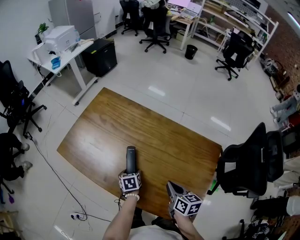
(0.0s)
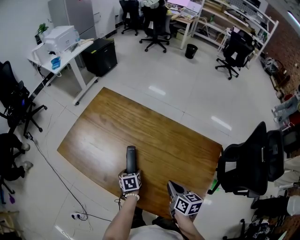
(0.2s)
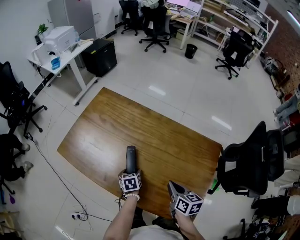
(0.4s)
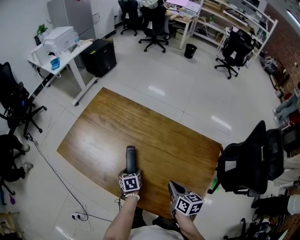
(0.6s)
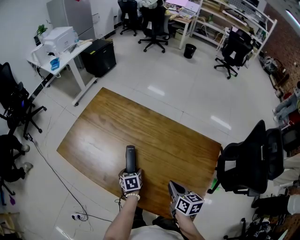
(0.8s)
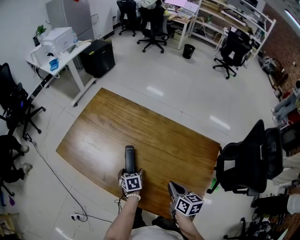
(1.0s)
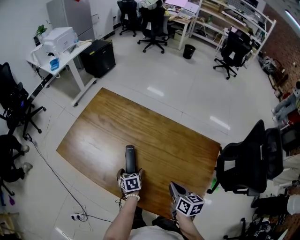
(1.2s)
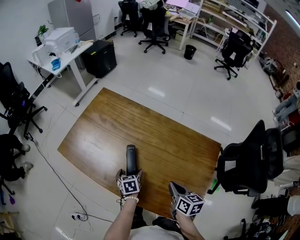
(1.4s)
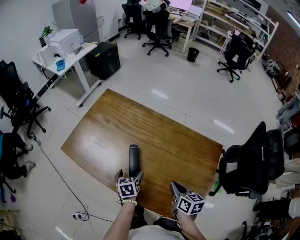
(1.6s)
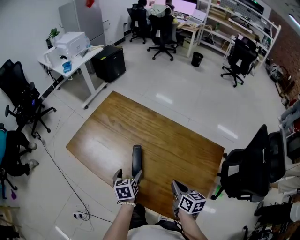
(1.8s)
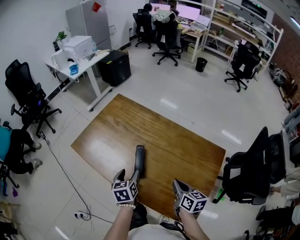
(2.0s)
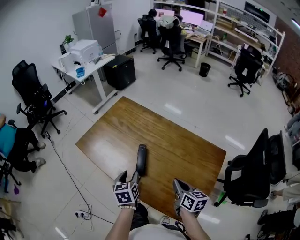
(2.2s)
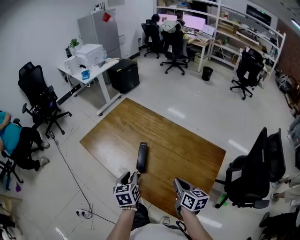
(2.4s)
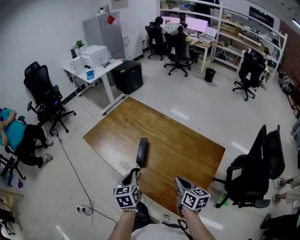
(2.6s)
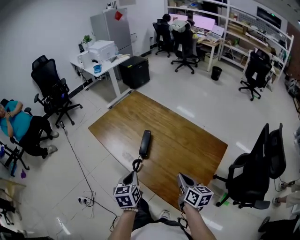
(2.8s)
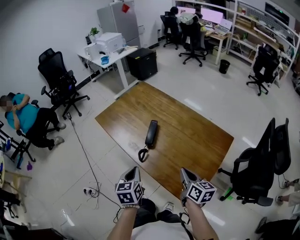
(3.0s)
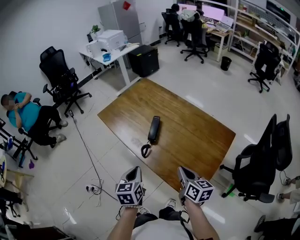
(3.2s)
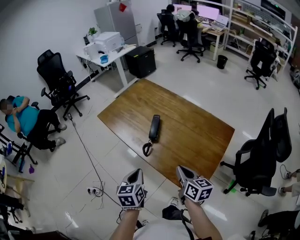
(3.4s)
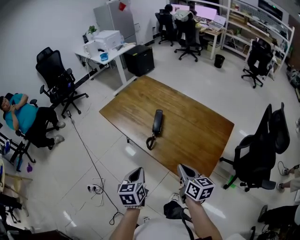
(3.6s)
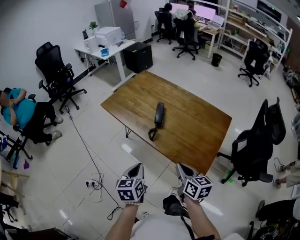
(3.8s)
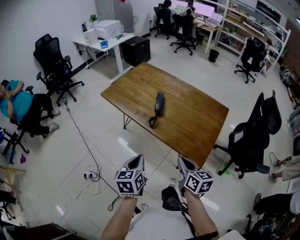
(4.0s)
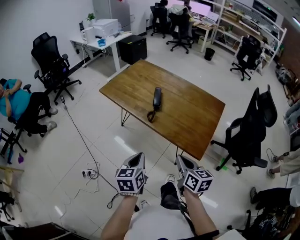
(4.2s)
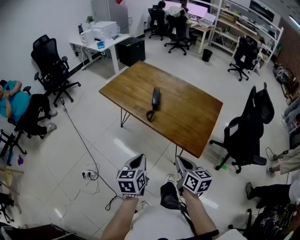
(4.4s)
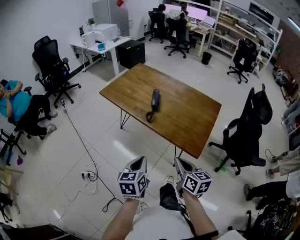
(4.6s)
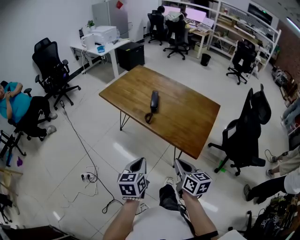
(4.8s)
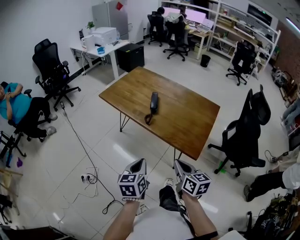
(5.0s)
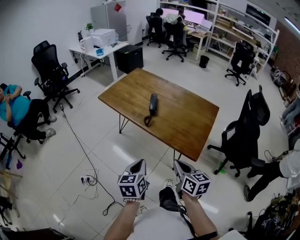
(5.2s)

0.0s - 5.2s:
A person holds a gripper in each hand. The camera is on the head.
0.0s - 1.8s: The left gripper moves upward, some 10 cm.
1.8s - 3.4s: The left gripper moves backward and upward, some 25 cm, and closes its fingers. The right gripper heads backward, upward and to the left, covering about 15 cm.
3.4s - 5.2s: Both grippers travel together backward, about 20 cm.

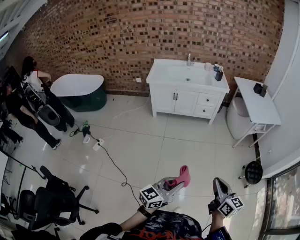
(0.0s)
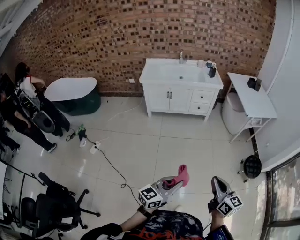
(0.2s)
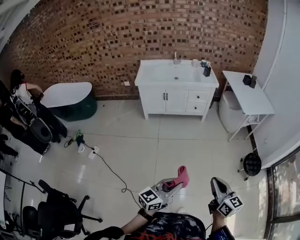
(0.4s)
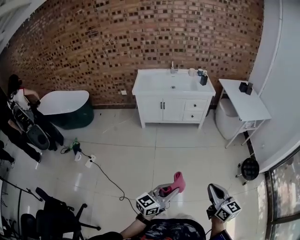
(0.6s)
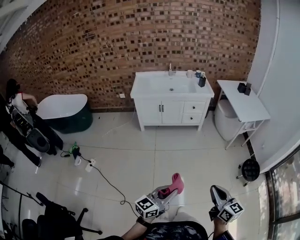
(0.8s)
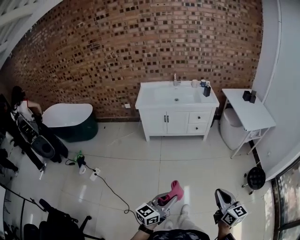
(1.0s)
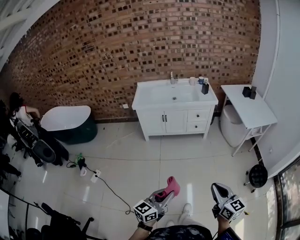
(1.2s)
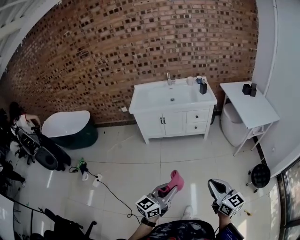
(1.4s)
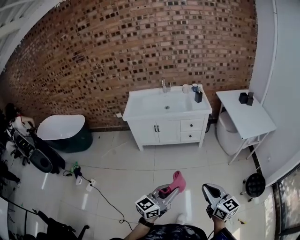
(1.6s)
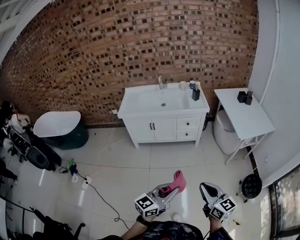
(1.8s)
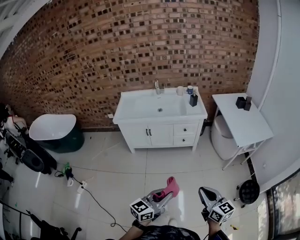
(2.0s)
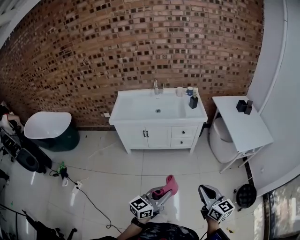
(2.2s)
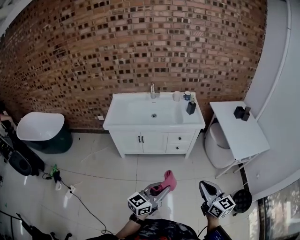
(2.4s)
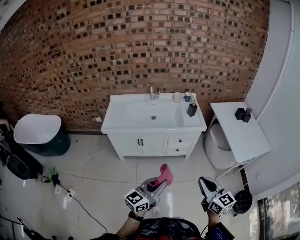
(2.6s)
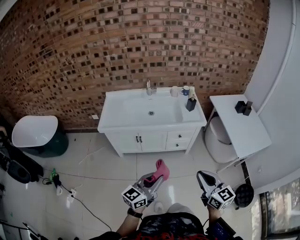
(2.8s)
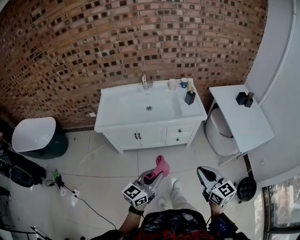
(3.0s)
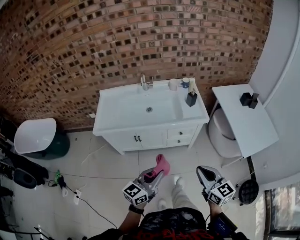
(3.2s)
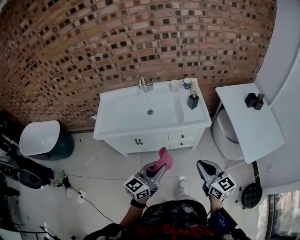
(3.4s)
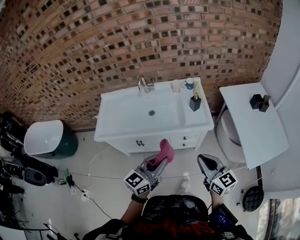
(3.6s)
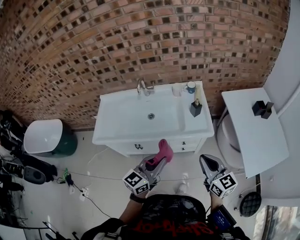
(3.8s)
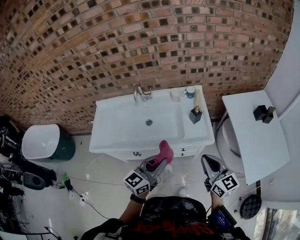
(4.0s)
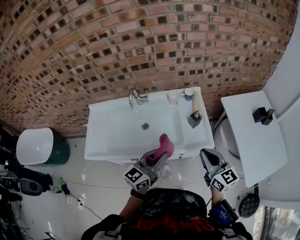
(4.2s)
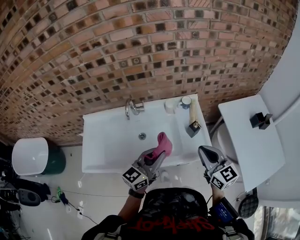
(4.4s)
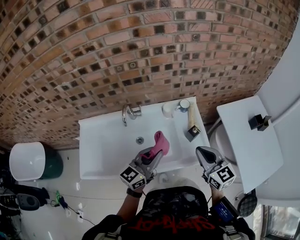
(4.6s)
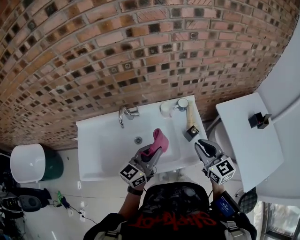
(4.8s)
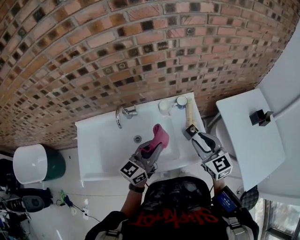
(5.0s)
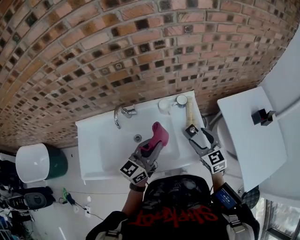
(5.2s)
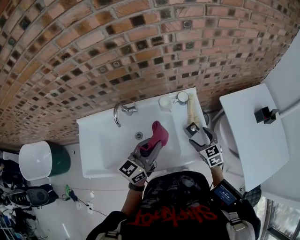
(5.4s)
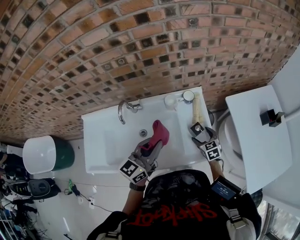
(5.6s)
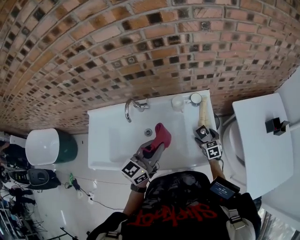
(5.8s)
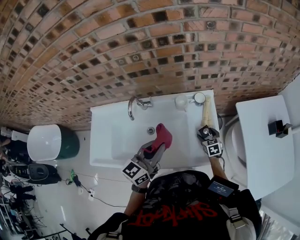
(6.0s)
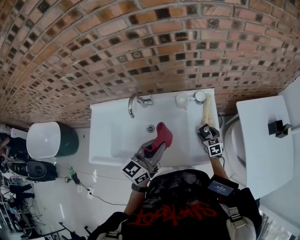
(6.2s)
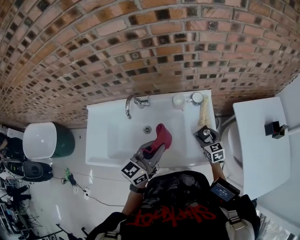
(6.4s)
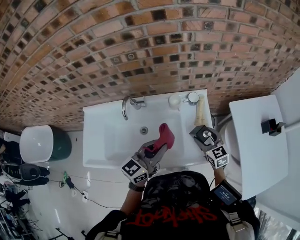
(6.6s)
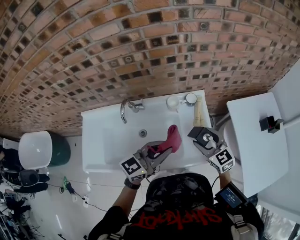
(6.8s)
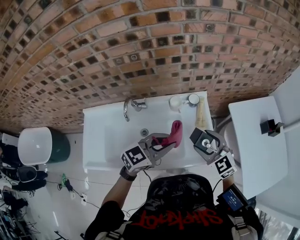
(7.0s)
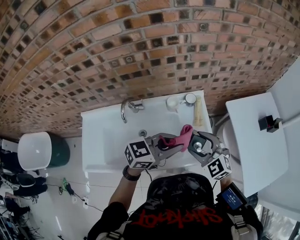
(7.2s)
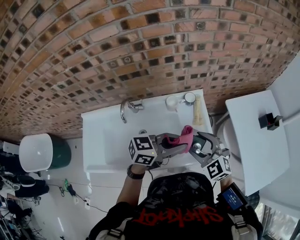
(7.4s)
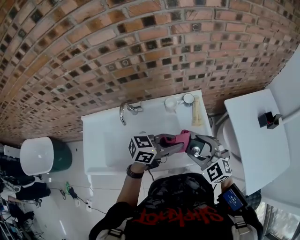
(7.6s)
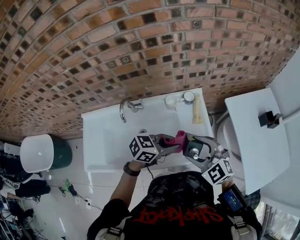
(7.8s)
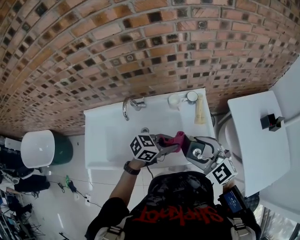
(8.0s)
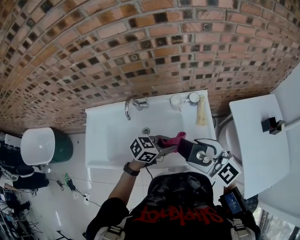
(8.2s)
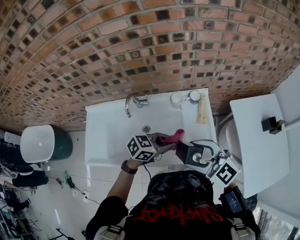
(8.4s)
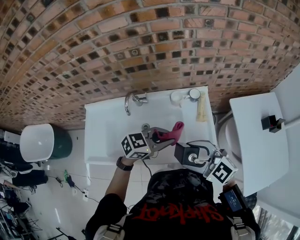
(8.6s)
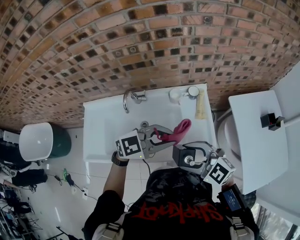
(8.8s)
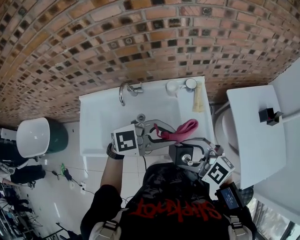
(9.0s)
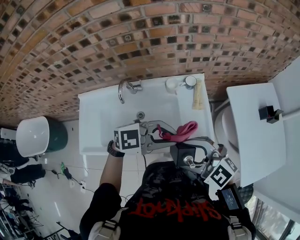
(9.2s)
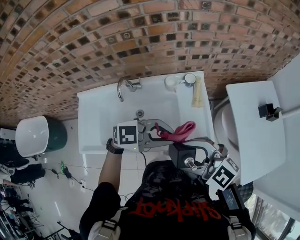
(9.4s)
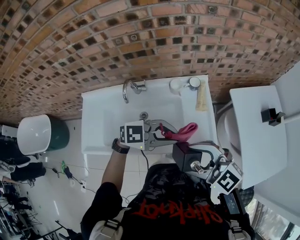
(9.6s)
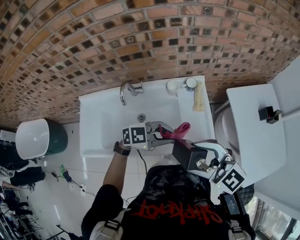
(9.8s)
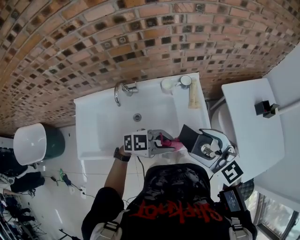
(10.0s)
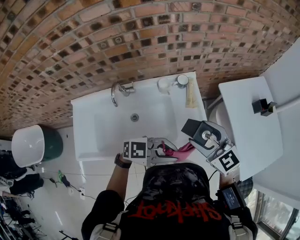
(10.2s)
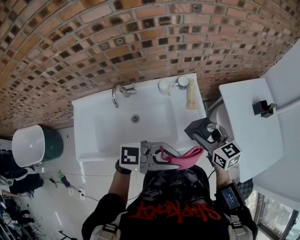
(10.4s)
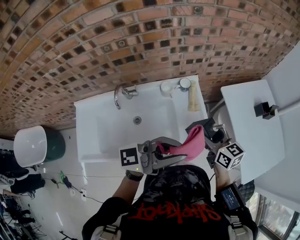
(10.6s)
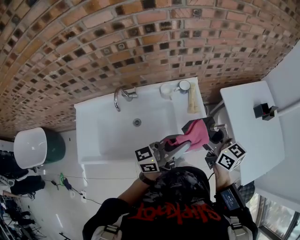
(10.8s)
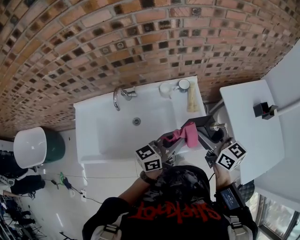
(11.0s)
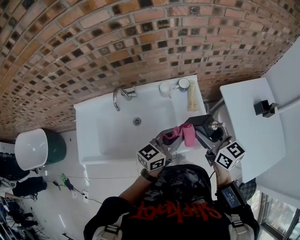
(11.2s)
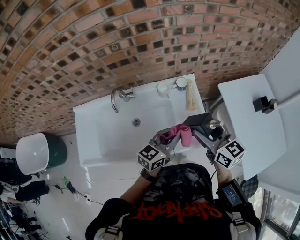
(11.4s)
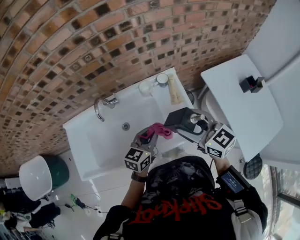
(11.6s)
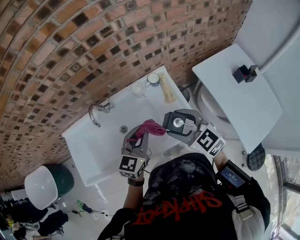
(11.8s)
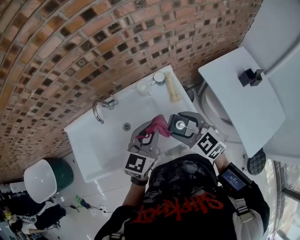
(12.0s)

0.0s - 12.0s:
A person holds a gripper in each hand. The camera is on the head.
0.0s - 1.6s: The grippers both shift forward by approximately 20 cm.
1.6s - 3.0s: The pair of grippers is taken forward, roughly 40 cm.
3.0s - 4.4s: Both grippers are carried forward, approximately 50 cm.
4.4s - 6.0s: The right gripper goes roughly 40 cm downward and forward, angles its fingers downward, by approximately 40 degrees, and opens, while the left gripper heads forward, covering roughly 10 cm.
6.0s - 7.6s: The right gripper shifts approximately 30 cm upward and backward, and swivels approximately 40 degrees. The left gripper shifts roughly 10 cm to the right, and turns by roughly 50 degrees.
7.6s - 9.0s: The right gripper ends up roughly 10 cm from where it was, and rotates about 30 degrees. The left gripper moves upward, about 5 cm, and swivels approximately 40 degrees.
9.0s - 10.4s: The left gripper travels downward and back again, roughly 10 cm each way, and changes its angle by some 20 degrees; the right gripper changes place by approximately 15 cm, and turns by some 50 degrees.
10.4s - 12.0s: The left gripper swings up and down, some 20 cm each way, with 2 reversals, and rotates approximately 60 degrees, while the right gripper turns by some 20 degrees.

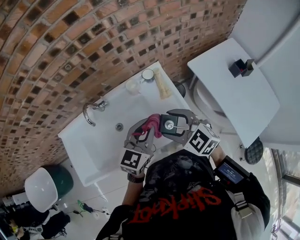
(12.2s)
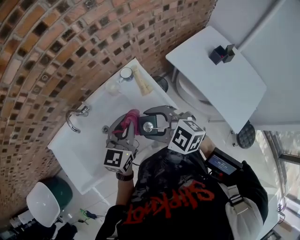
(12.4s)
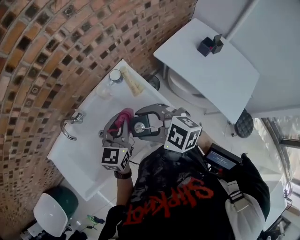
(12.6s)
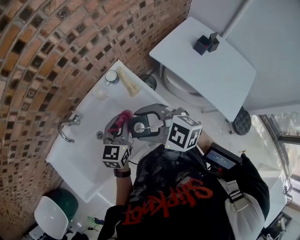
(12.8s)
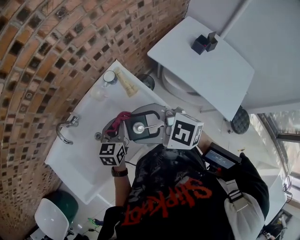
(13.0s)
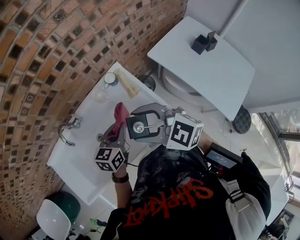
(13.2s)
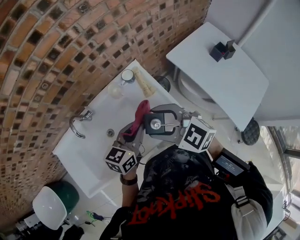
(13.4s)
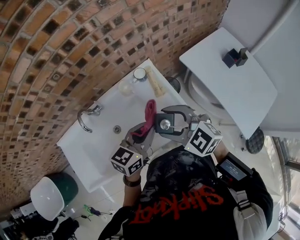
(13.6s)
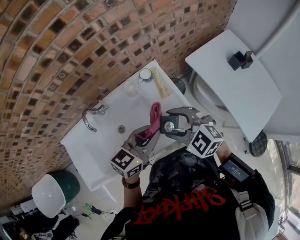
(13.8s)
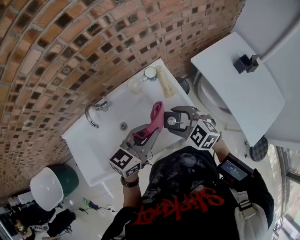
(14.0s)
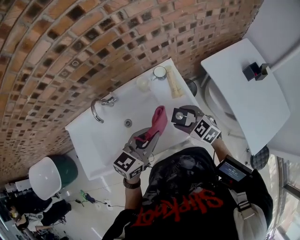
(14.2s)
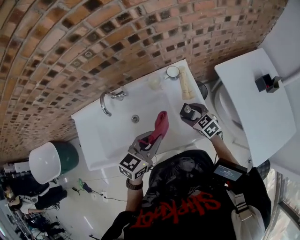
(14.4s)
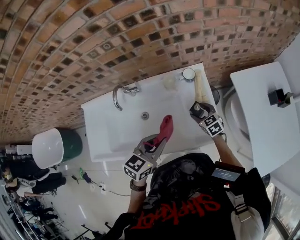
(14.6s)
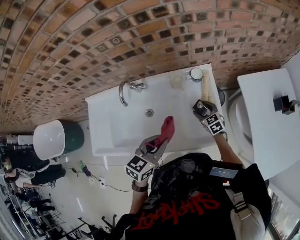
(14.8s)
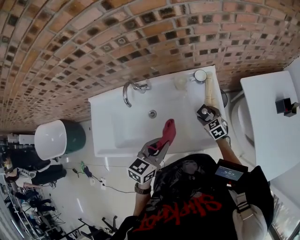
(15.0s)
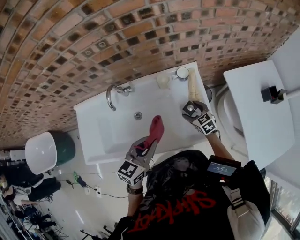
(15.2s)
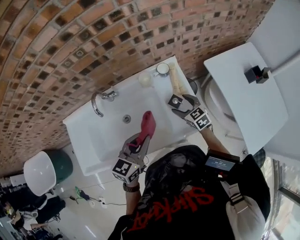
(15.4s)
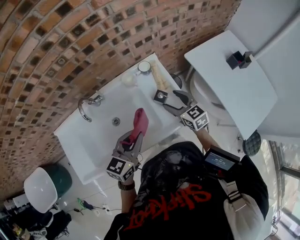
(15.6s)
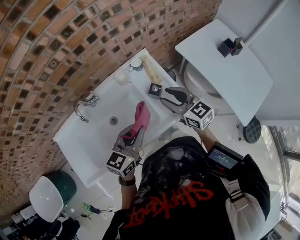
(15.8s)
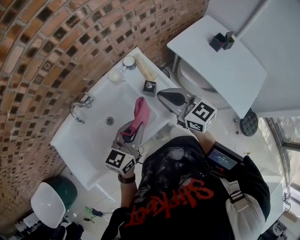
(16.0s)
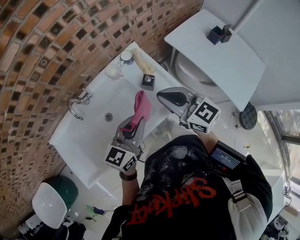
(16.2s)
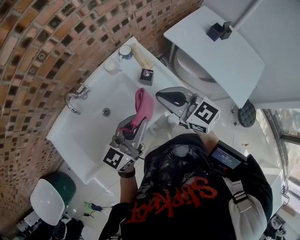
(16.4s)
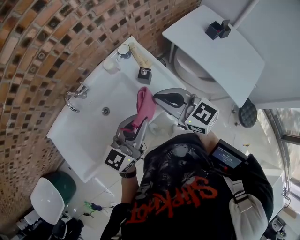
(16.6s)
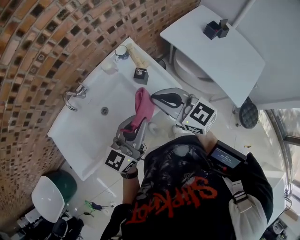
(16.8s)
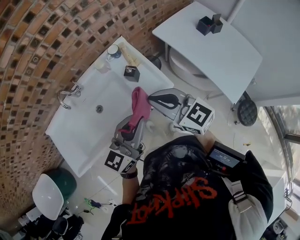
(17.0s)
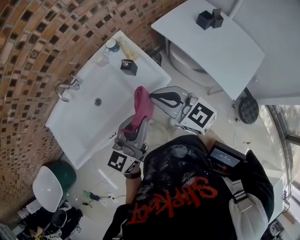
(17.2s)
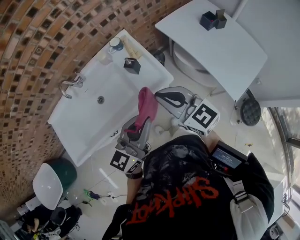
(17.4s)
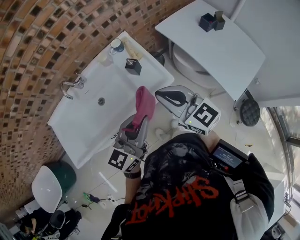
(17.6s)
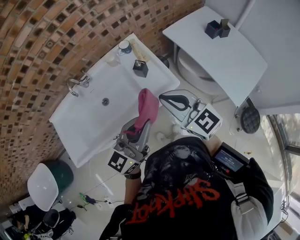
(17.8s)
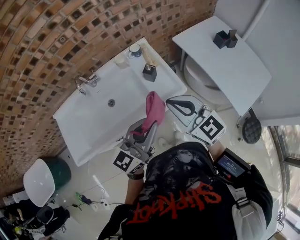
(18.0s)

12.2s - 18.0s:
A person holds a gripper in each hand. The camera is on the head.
12.2s - 13.6s: The left gripper goes downward and returns, some 10 cm each way, and rotates approximately 20 degrees.
13.6s - 15.0s: The right gripper goes about 30 cm downward, and rotates some 20 degrees. Meanwhile the left gripper is displaced to the left and downward by roughly 10 cm, and changes its angle by approximately 30 degrees.
15.0s - 16.6s: The left gripper is displaced upward, to the right and backward by approximately 15 cm, and rotates approximately 40 degrees, while the right gripper shifts some 35 cm upward and backward, tilts its fingers some 30 degrees upward, and closes its fingers.
16.6s - 18.0s: Both grippers travel together backward and to the right, roughly 10 cm.
